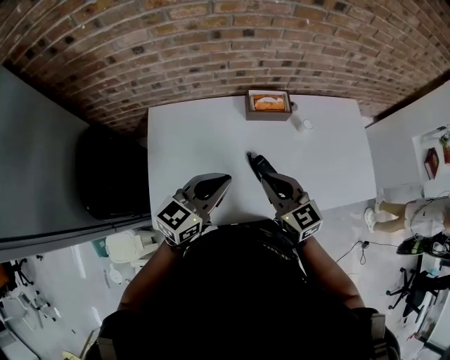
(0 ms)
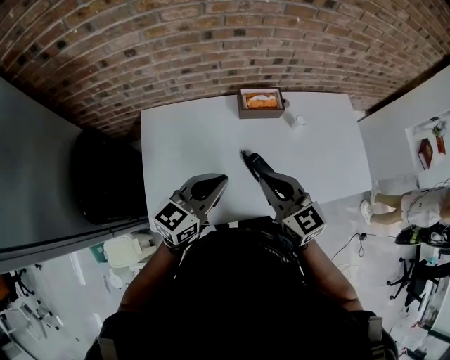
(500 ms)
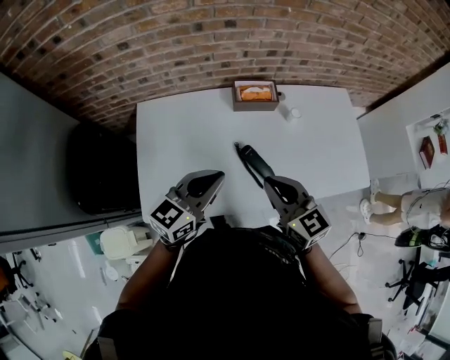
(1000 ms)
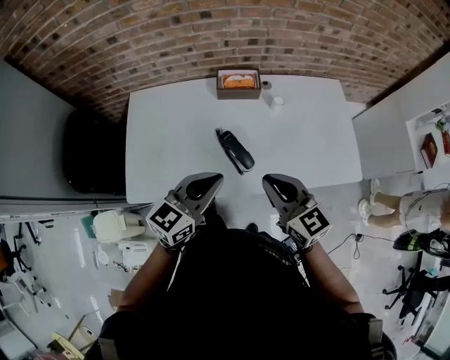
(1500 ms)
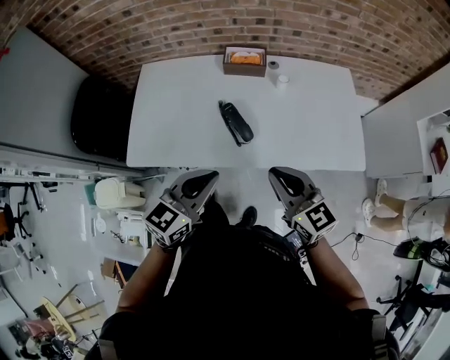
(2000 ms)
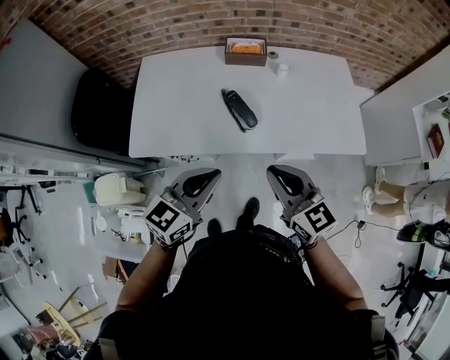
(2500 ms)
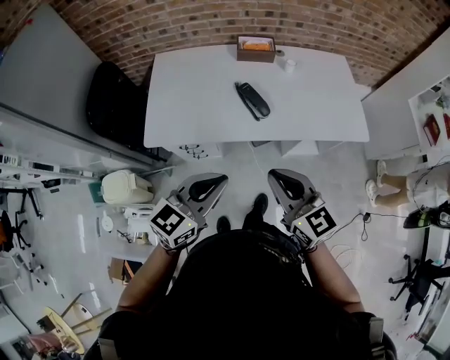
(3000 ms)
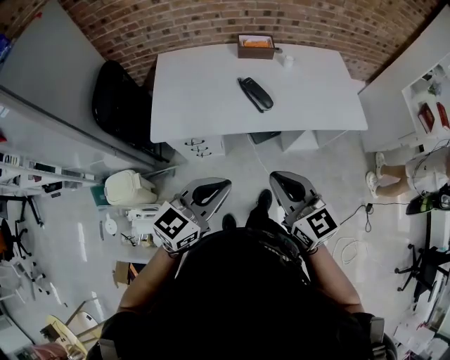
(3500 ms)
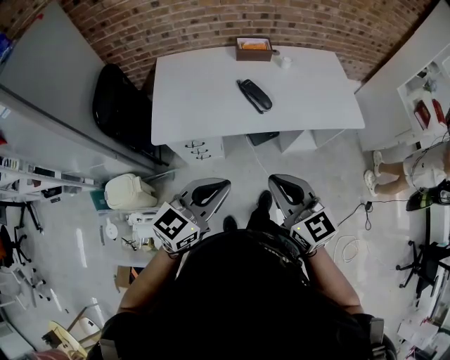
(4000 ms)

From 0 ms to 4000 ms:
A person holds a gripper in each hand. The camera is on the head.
From 0 ms to 2000 ms: The left gripper goes approximately 25 cm backward and to the right. The right gripper travels to the right and backward by approximately 30 cm.
From 2000 ms to 4000 ms: The grippers both shift backward and to the left by about 30 cm.

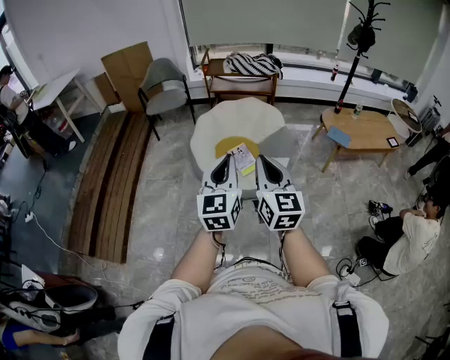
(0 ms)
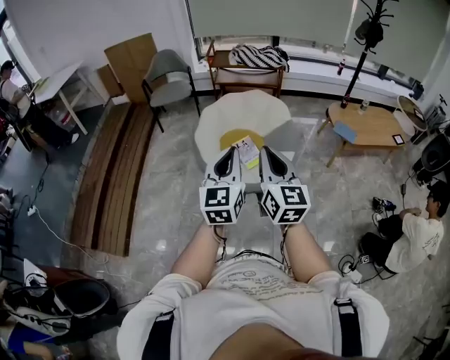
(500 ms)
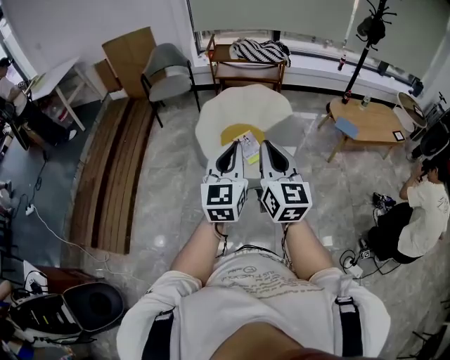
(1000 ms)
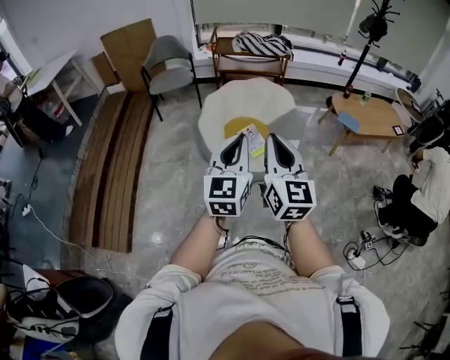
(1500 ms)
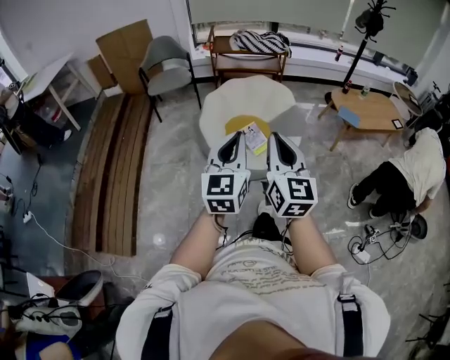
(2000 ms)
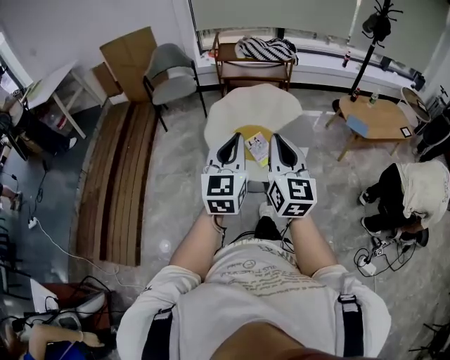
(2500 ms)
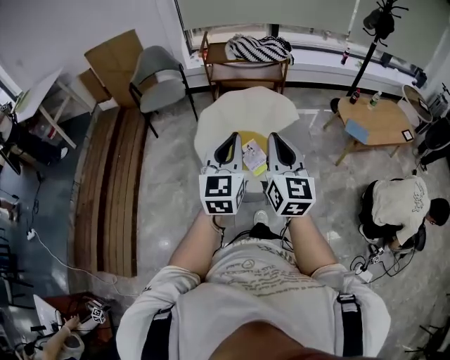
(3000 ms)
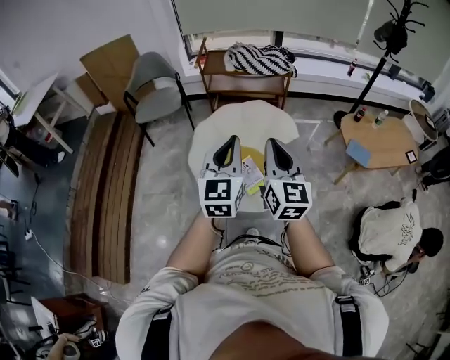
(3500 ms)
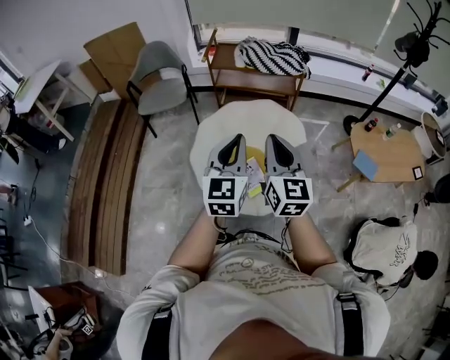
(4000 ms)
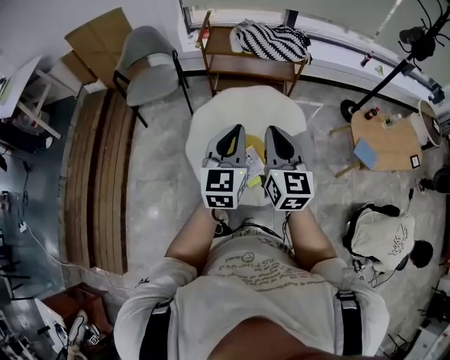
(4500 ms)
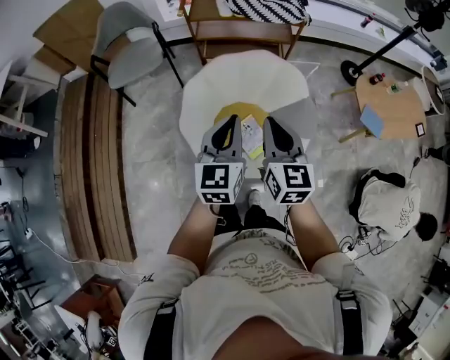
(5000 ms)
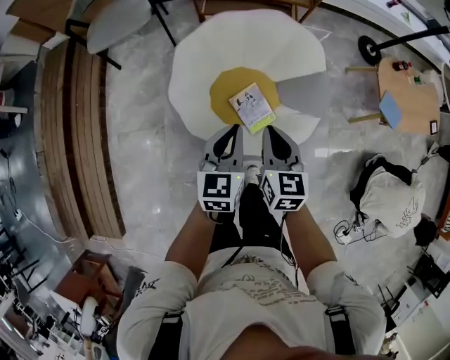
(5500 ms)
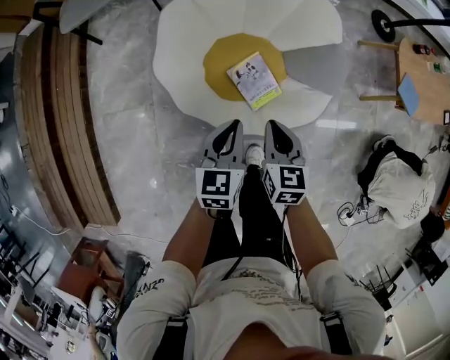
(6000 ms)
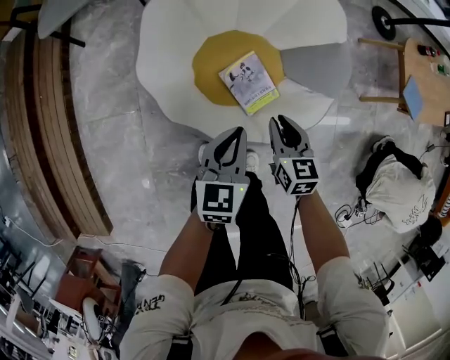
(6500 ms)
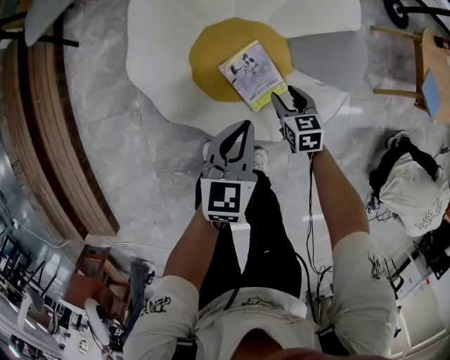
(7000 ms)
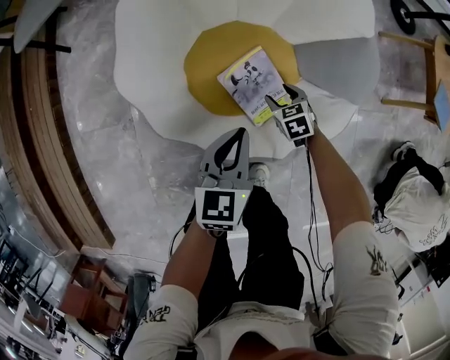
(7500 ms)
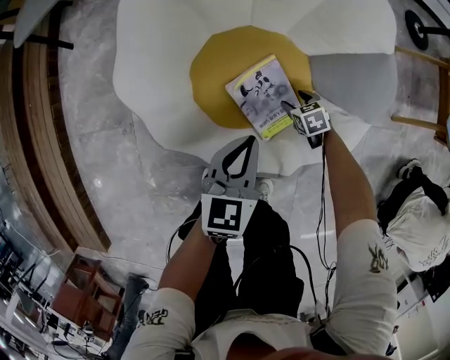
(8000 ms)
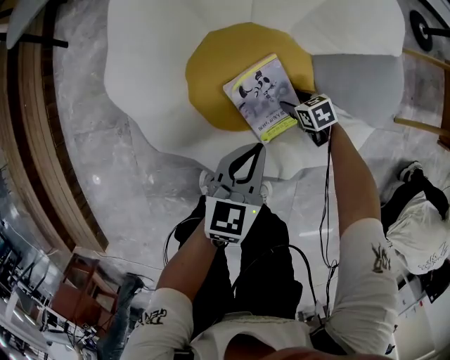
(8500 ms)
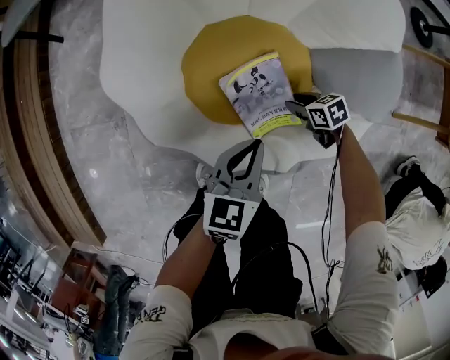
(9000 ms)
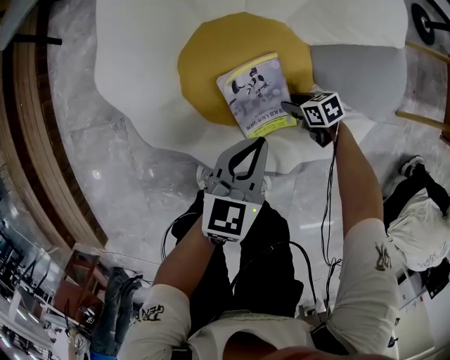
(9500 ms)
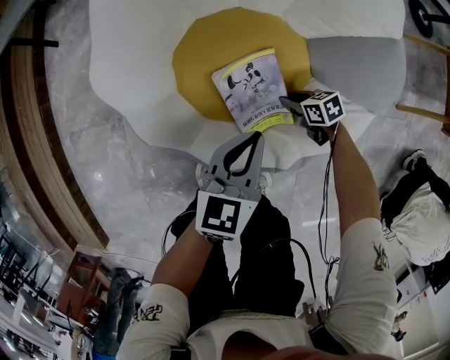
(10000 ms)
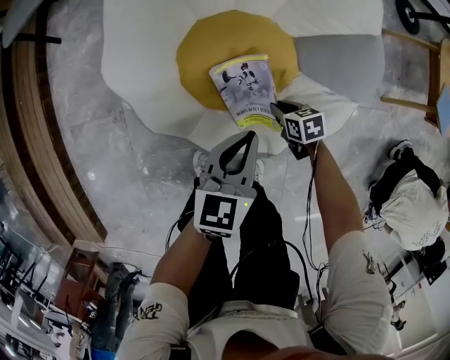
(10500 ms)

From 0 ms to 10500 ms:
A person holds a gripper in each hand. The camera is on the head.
From 0 ms to 2000 ms: The grippers both shift to the left by roughly 10 cm.
From 2000 ms to 4000 ms: The two grippers travel together, forward, approximately 40 cm.
From 4000 ms to 6500 ms: Both grippers travel together downward, about 50 cm. The right gripper tilts its fingers approximately 40 degrees downward; the left gripper rotates roughly 30 degrees.
From 6500 ms to 8500 ms: The right gripper heads downward, covering roughly 40 cm, rotates some 40 degrees, and opens, while the left gripper travels downward by about 20 cm.
From 8500 ms to 10500 ms: The left gripper moves upward, about 5 cm. Meanwhile the right gripper shifts some 10 cm upward and backward, and closes up.

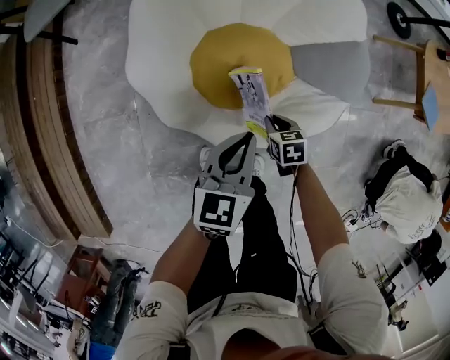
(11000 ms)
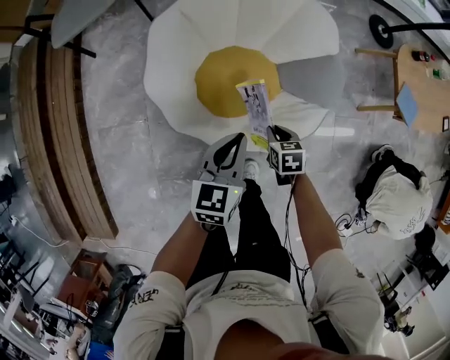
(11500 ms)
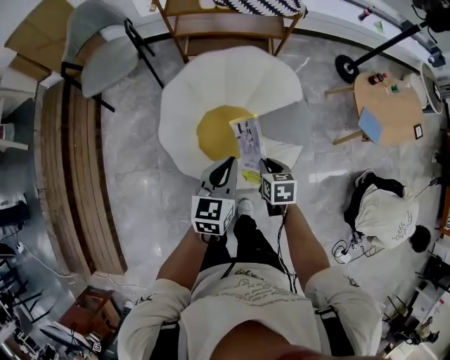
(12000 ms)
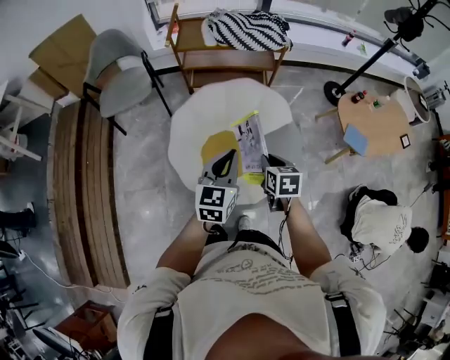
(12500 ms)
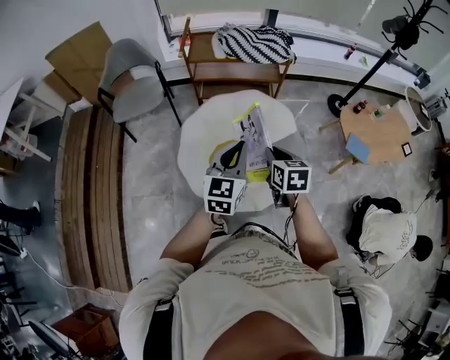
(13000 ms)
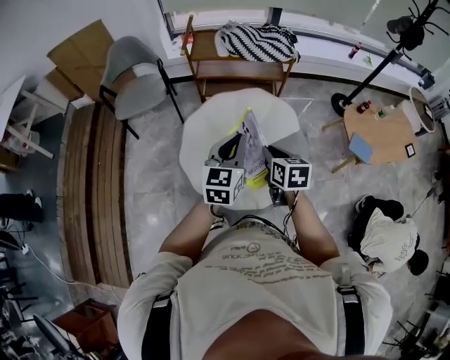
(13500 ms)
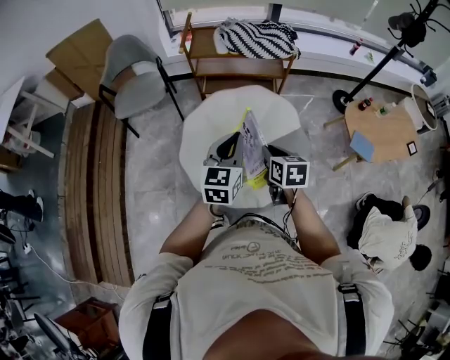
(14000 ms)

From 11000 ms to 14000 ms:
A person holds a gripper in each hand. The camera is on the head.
From 11000 ms to 12500 ms: The grippers both shift upward by roughly 40 cm. The right gripper changes its angle by some 20 degrees.
From 12500 ms to 14000 ms: Both grippers move upward, some 5 cm.

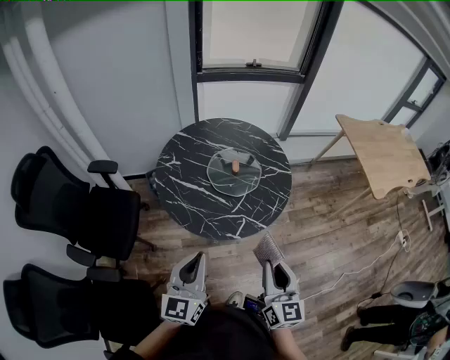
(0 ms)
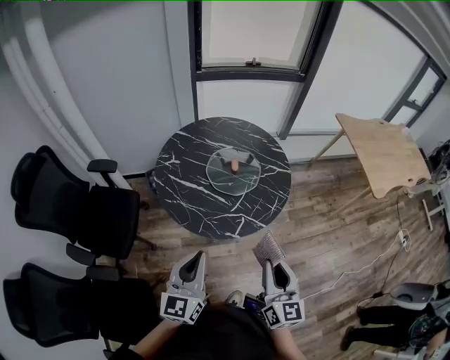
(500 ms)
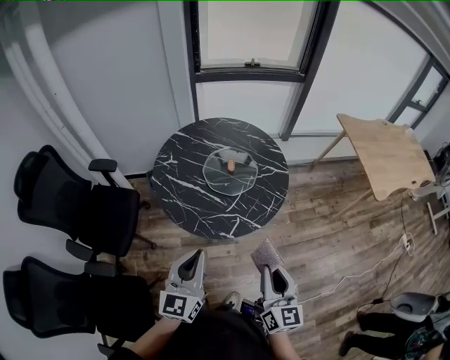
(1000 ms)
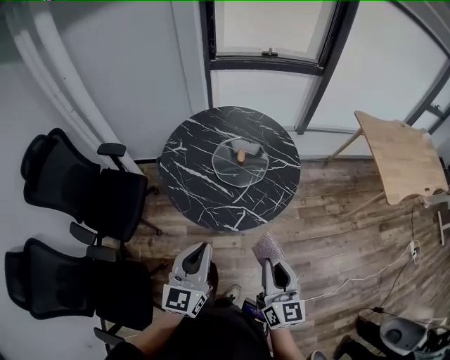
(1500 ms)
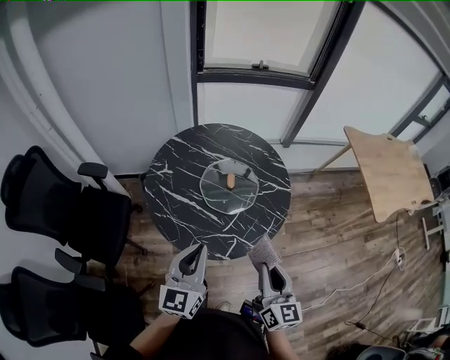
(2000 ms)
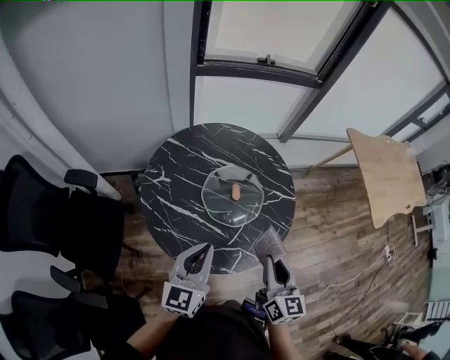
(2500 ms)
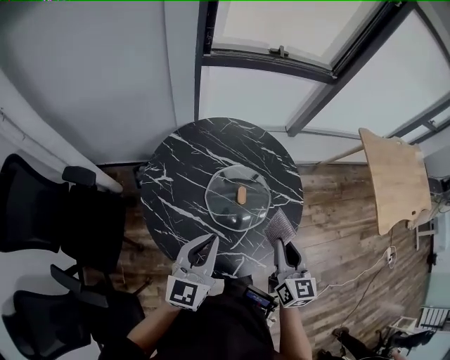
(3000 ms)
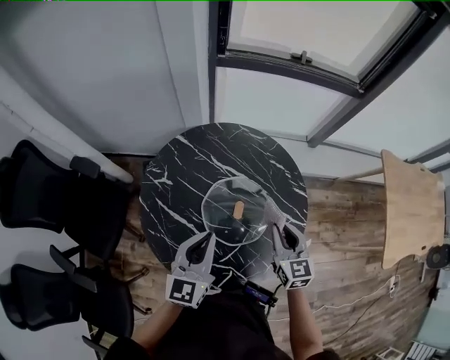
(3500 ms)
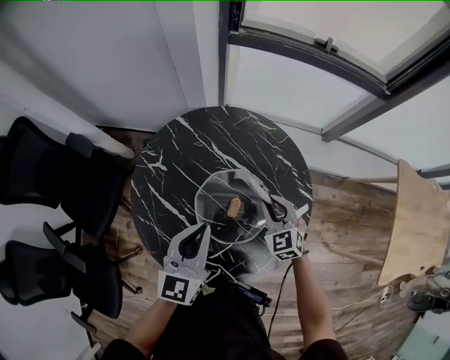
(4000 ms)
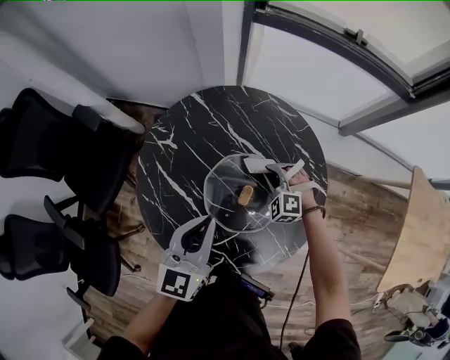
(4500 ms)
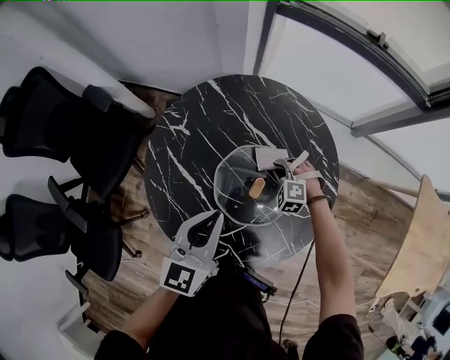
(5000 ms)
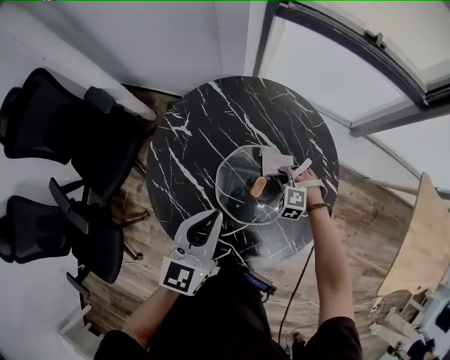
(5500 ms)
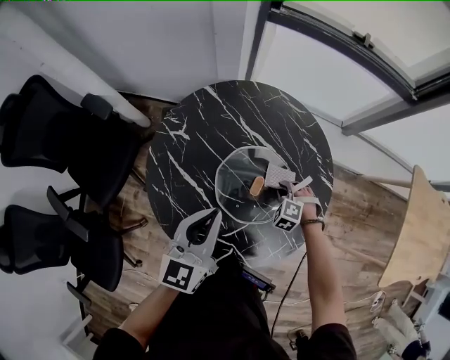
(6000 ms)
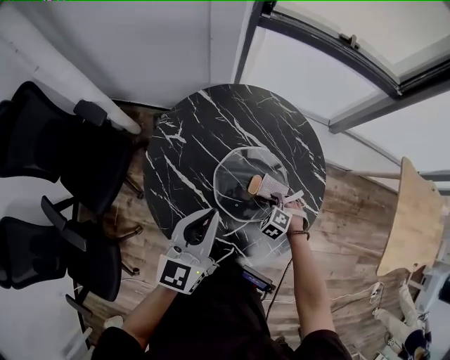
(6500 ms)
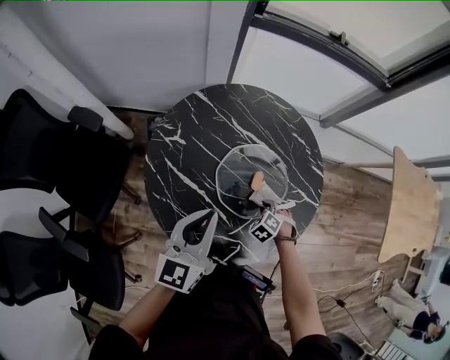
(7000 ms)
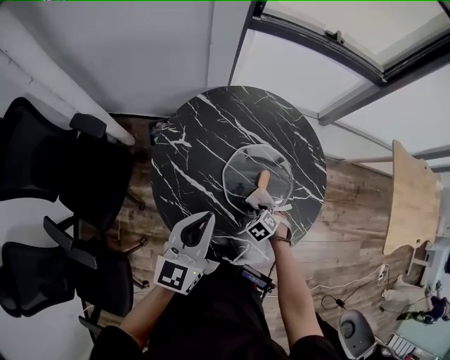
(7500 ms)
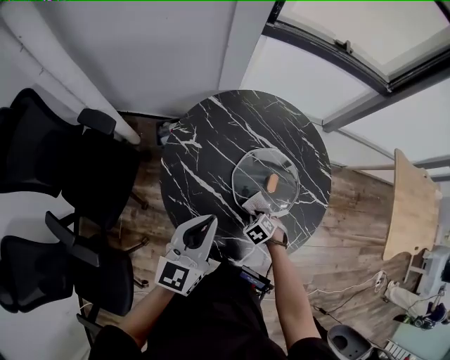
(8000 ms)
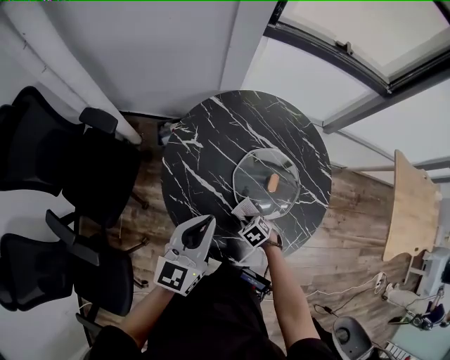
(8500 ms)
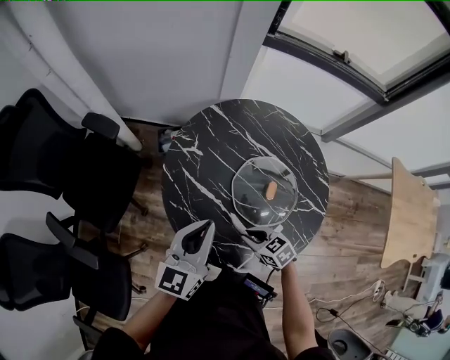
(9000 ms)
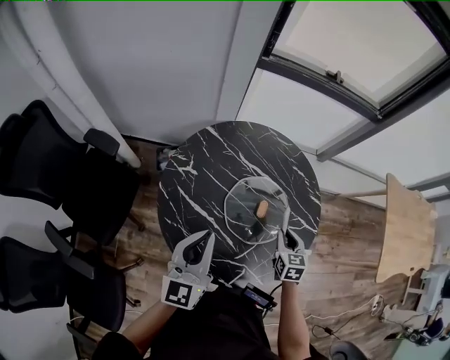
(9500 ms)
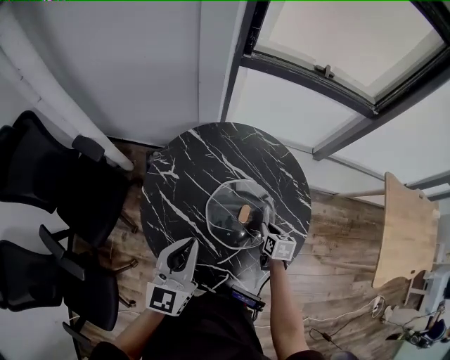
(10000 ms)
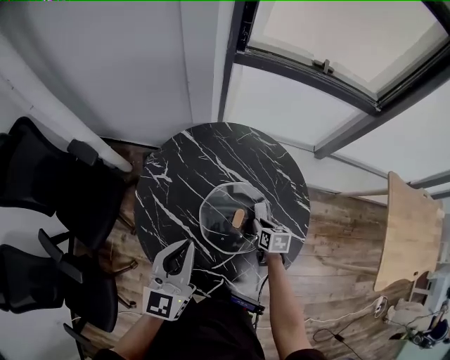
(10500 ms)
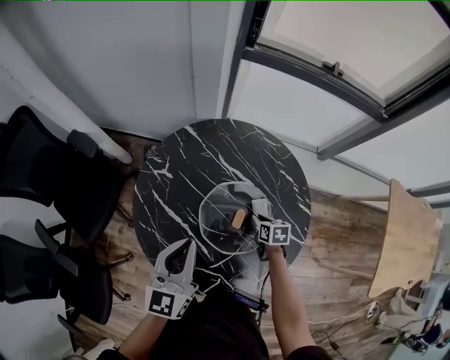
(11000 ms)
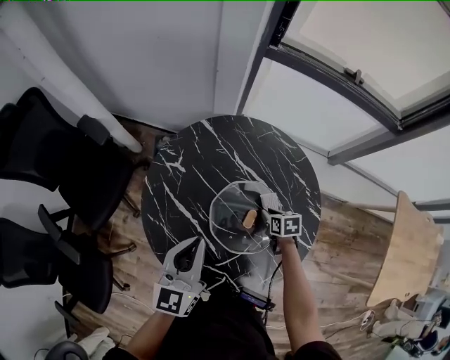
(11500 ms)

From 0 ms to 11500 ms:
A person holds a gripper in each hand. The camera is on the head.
From 0 ms to 2000 ms: Both grippers move forward, approximately 15 cm.
From 2000 ms to 4000 ms: The right gripper ends up about 50 cm from where it was, and rotates some 60 degrees; the left gripper shifts by roughly 30 cm.
From 4000 ms to 6000 ms: The left gripper ends up roughly 5 cm from where it was. The right gripper shifts some 15 cm downward, and angles its fingers downward, by approximately 30 degrees.
From 6000 ms to 7500 ms: The left gripper changes place by roughly 10 cm, while the right gripper ends up roughly 15 cm from where it was, and rotates approximately 40 degrees.
From 7500 ms to 9500 ms: The right gripper heads upward, covering approximately 15 cm, and tilts its fingers some 40 degrees upward.
From 9500 ms to 11500 ms: The left gripper shifts by roughly 10 cm. The right gripper goes some 15 cm downward, and turns by about 30 degrees.
